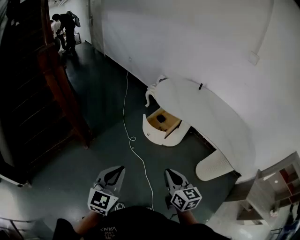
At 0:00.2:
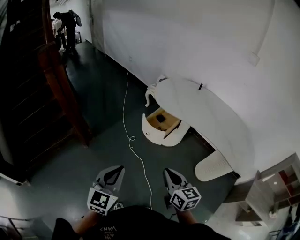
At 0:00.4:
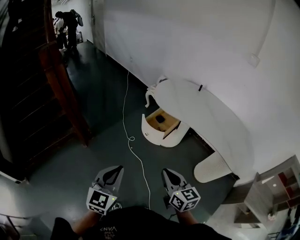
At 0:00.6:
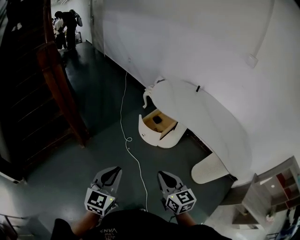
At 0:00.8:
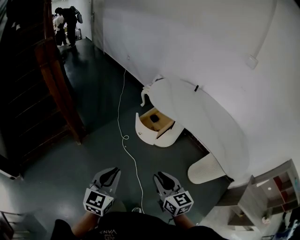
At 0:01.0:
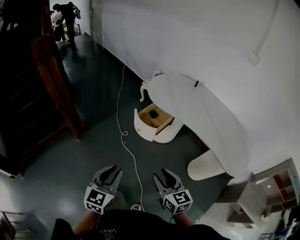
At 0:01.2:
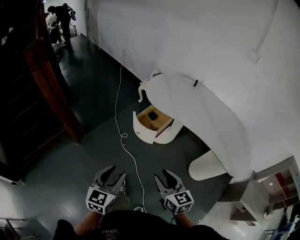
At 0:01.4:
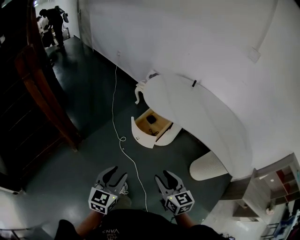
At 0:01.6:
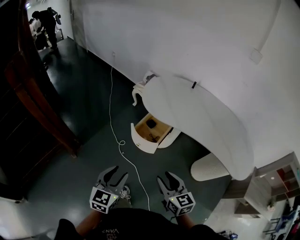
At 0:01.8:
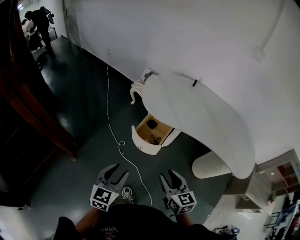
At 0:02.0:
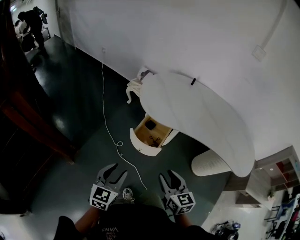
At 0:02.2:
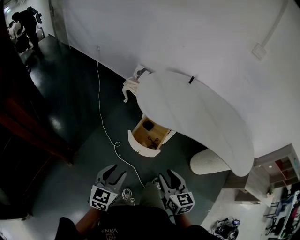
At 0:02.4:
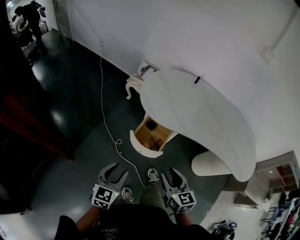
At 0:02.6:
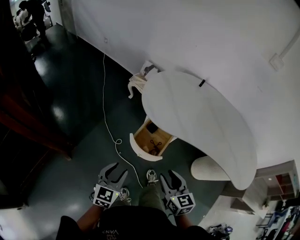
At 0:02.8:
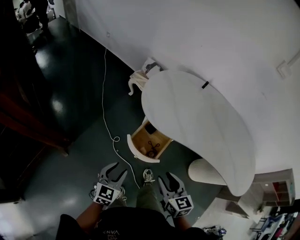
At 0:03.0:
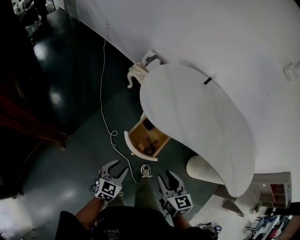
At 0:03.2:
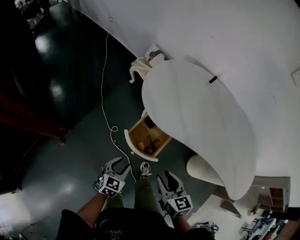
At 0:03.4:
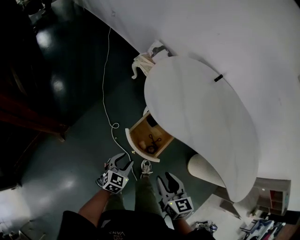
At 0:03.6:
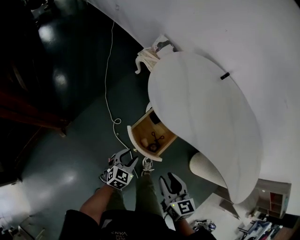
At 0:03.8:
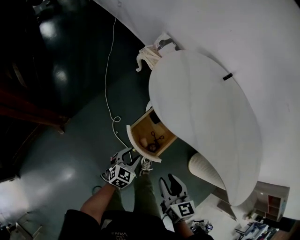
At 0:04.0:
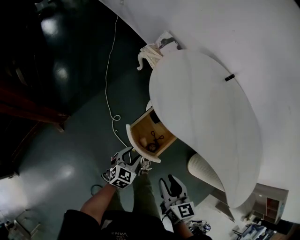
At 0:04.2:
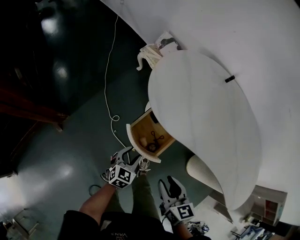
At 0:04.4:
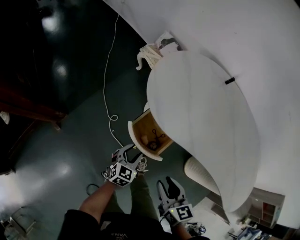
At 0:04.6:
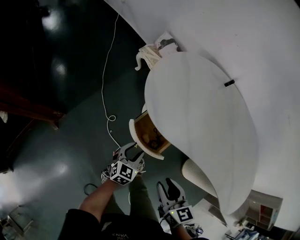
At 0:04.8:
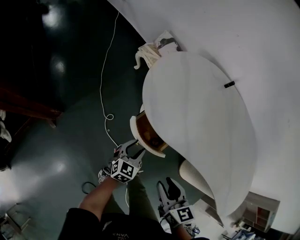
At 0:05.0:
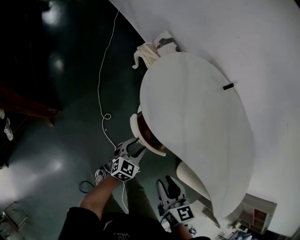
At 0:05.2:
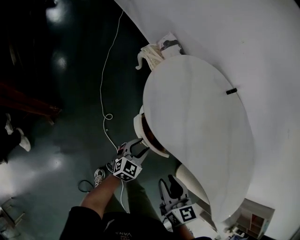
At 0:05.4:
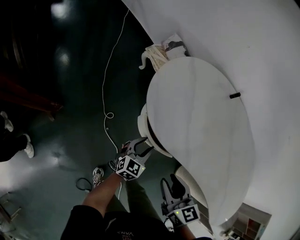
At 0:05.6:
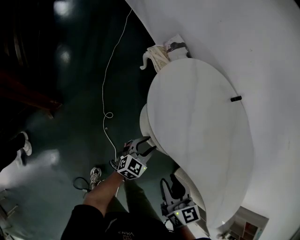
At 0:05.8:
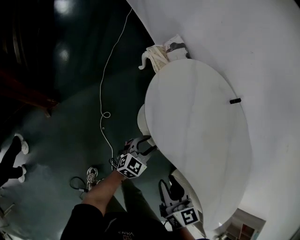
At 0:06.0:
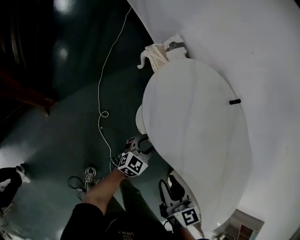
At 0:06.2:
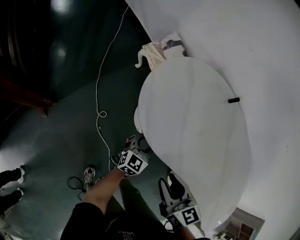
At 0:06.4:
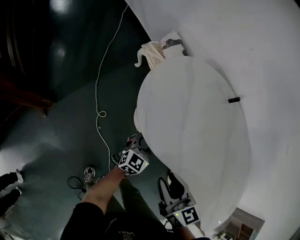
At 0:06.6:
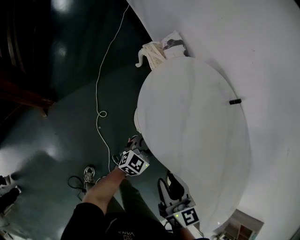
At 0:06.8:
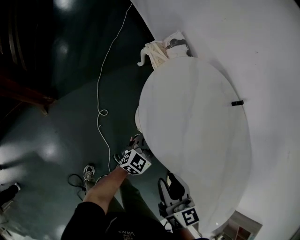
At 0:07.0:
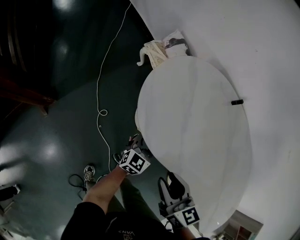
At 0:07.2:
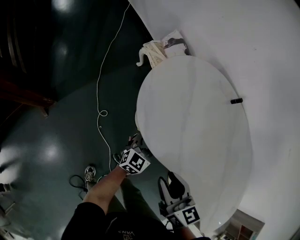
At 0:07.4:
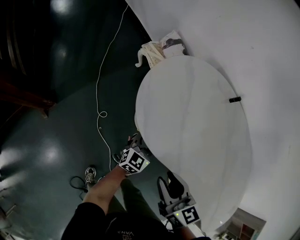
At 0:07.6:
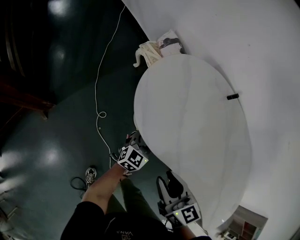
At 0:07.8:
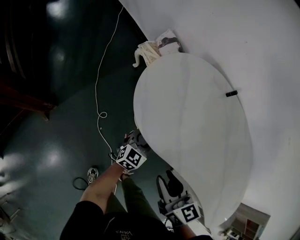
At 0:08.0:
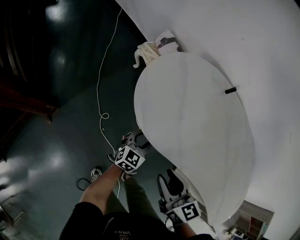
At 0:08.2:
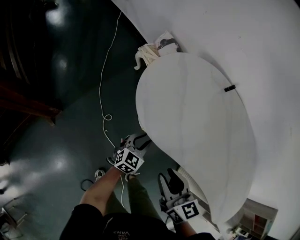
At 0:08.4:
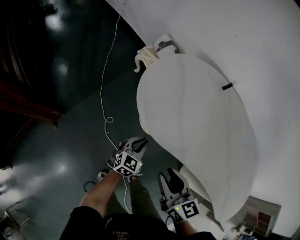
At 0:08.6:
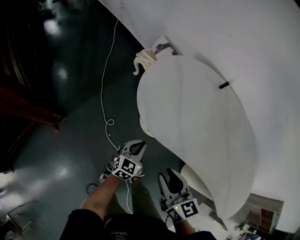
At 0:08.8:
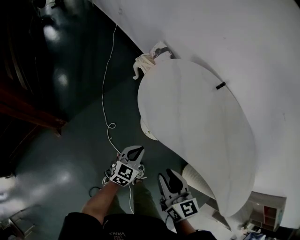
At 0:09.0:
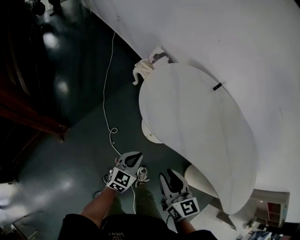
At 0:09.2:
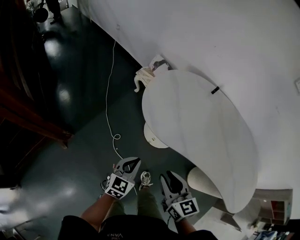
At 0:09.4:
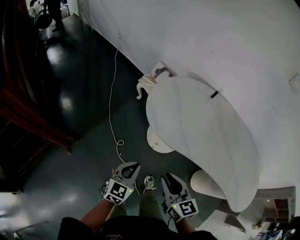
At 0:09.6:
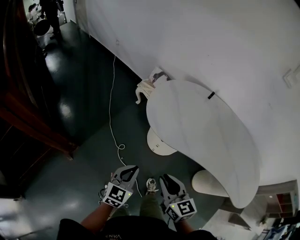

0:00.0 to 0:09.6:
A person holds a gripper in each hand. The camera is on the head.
0:00.0 to 0:01.6: The left gripper moves forward and downward, approximately 20 cm, and opens. The right gripper goes approximately 10 cm forward, and opens.
0:01.6 to 0:03.2: The right gripper shifts about 20 cm forward and downward. The left gripper shifts roughly 30 cm downward and forward.
0:03.2 to 0:04.8: The left gripper goes approximately 15 cm forward, to the right and downward; the right gripper changes place by roughly 5 cm.
0:04.8 to 0:06.4: The right gripper goes roughly 10 cm forward. The left gripper shifts some 15 cm forward and to the right.
0:06.4 to 0:08.0: The grippers make only small movements.
0:08.0 to 0:09.6: The left gripper is displaced upward, backward and to the left by about 30 cm, and closes. The right gripper shifts about 15 cm backward, to the left and upward.

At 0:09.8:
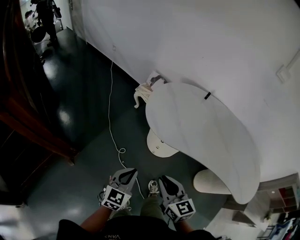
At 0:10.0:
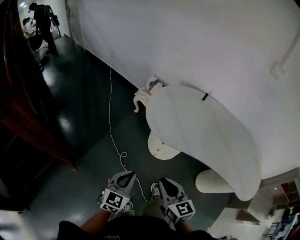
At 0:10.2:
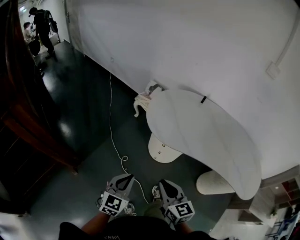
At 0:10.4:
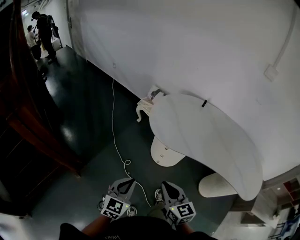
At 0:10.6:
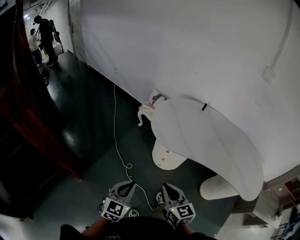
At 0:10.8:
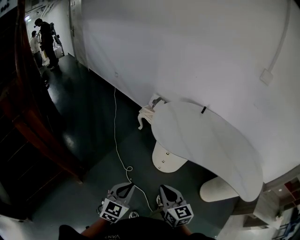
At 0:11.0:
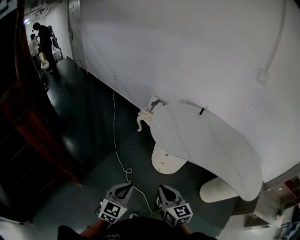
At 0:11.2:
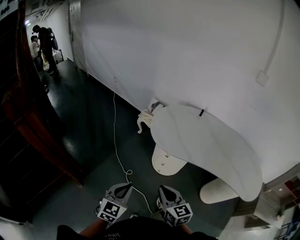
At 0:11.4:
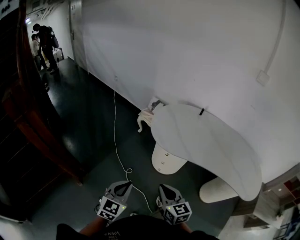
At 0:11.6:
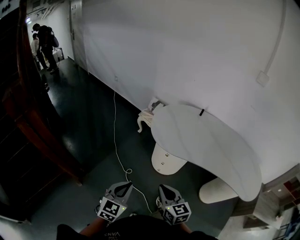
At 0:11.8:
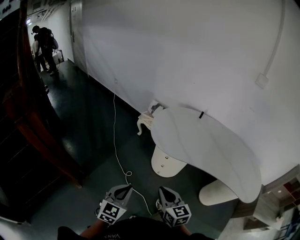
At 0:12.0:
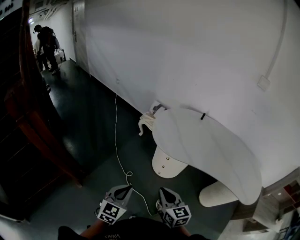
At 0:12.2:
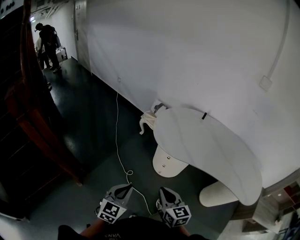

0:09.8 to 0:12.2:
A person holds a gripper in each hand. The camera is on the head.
0:09.8 to 0:11.0: The right gripper is displaced backward by about 5 cm; the left gripper moves backward, to the left and upward, roughly 10 cm.
0:11.0 to 0:12.2: The two grippers keep their place.

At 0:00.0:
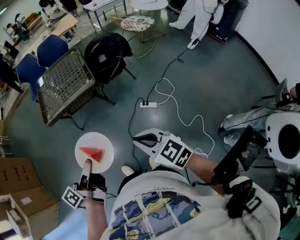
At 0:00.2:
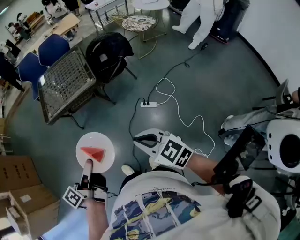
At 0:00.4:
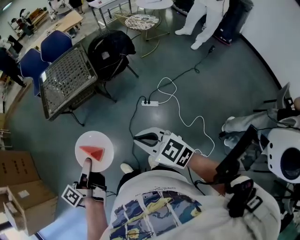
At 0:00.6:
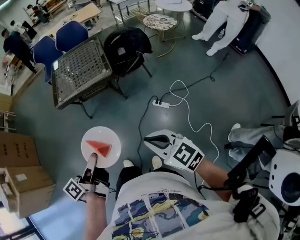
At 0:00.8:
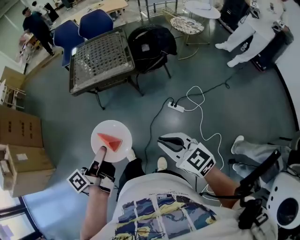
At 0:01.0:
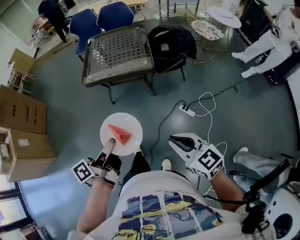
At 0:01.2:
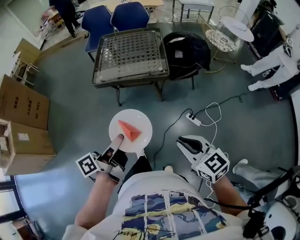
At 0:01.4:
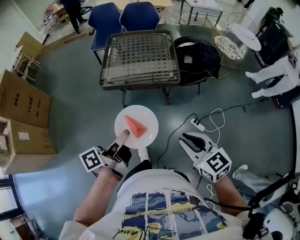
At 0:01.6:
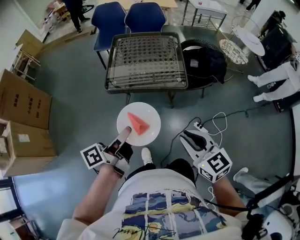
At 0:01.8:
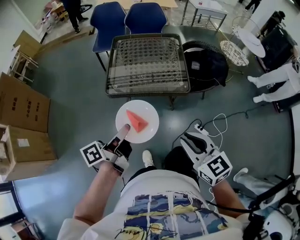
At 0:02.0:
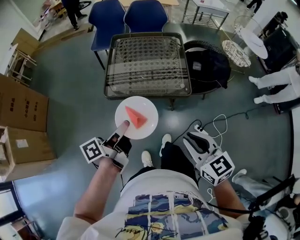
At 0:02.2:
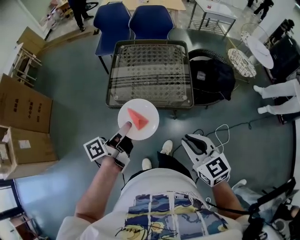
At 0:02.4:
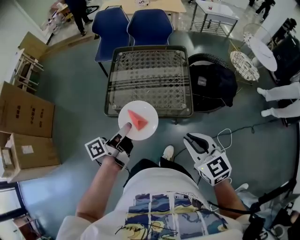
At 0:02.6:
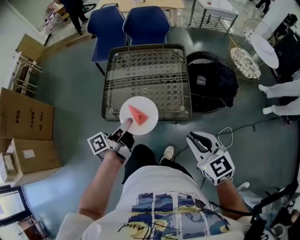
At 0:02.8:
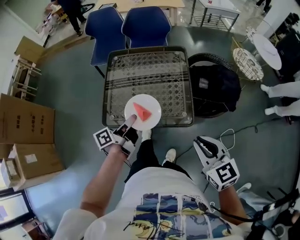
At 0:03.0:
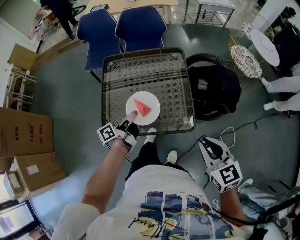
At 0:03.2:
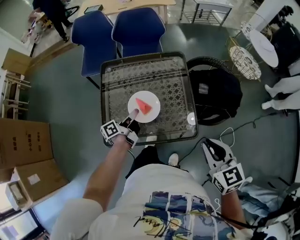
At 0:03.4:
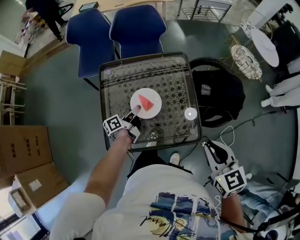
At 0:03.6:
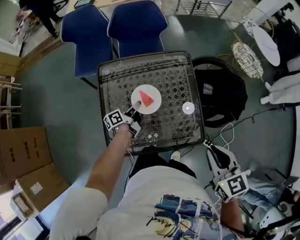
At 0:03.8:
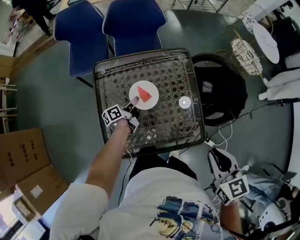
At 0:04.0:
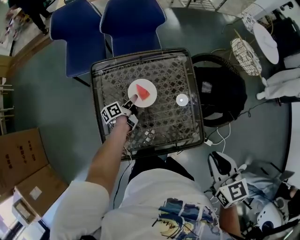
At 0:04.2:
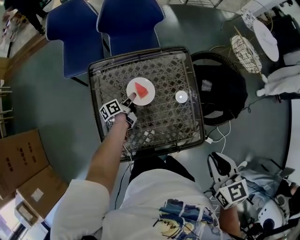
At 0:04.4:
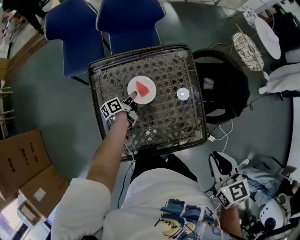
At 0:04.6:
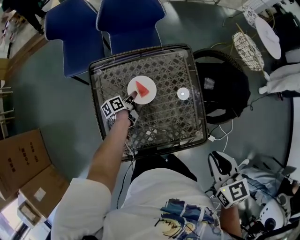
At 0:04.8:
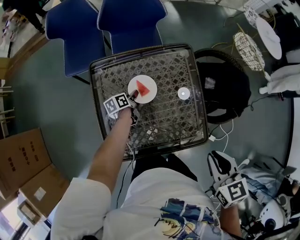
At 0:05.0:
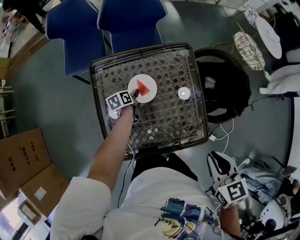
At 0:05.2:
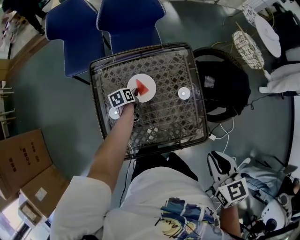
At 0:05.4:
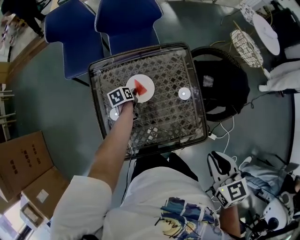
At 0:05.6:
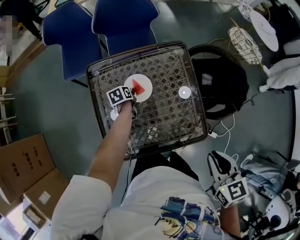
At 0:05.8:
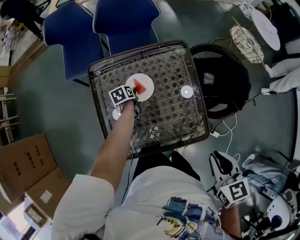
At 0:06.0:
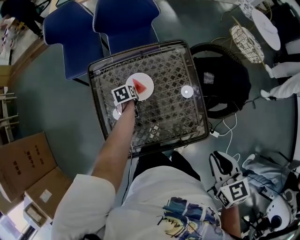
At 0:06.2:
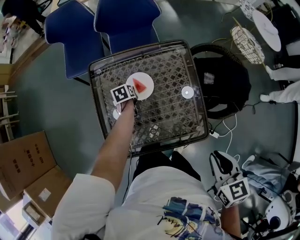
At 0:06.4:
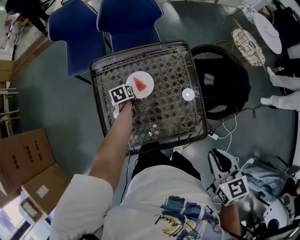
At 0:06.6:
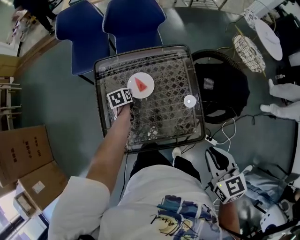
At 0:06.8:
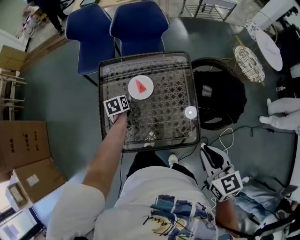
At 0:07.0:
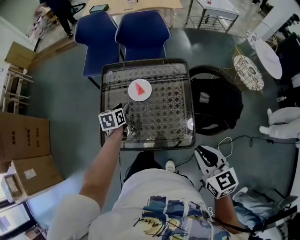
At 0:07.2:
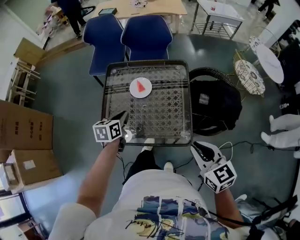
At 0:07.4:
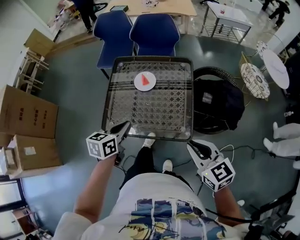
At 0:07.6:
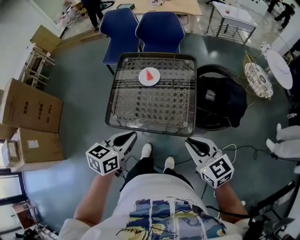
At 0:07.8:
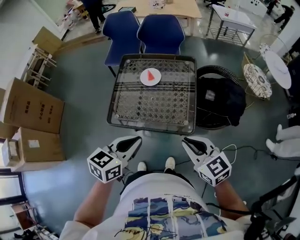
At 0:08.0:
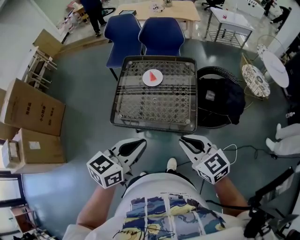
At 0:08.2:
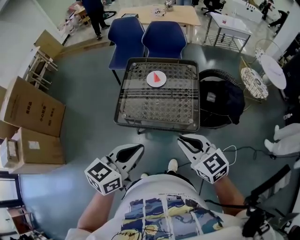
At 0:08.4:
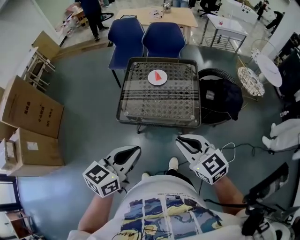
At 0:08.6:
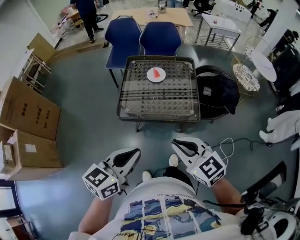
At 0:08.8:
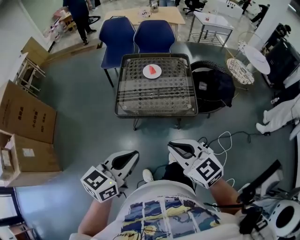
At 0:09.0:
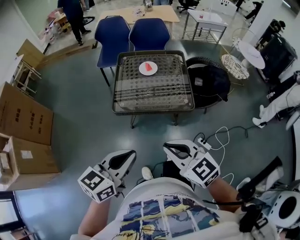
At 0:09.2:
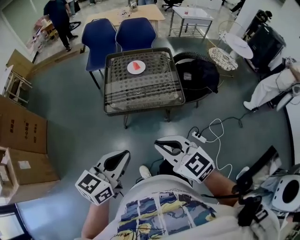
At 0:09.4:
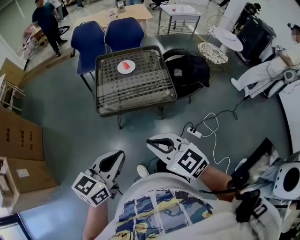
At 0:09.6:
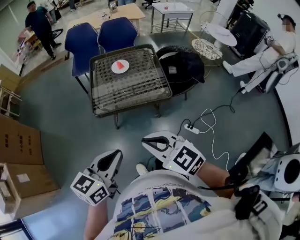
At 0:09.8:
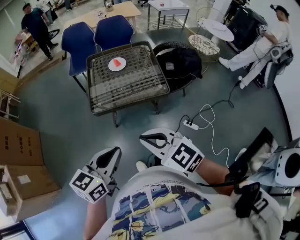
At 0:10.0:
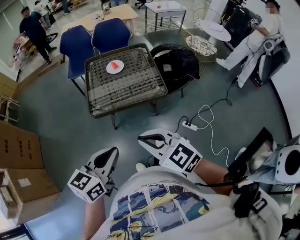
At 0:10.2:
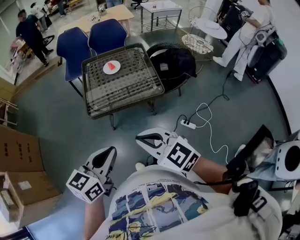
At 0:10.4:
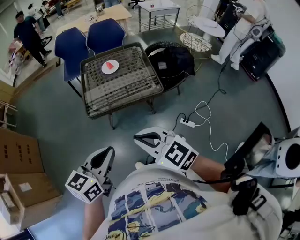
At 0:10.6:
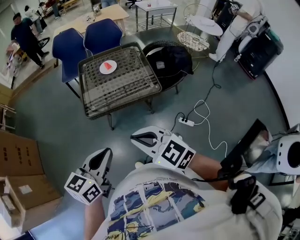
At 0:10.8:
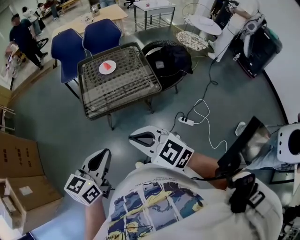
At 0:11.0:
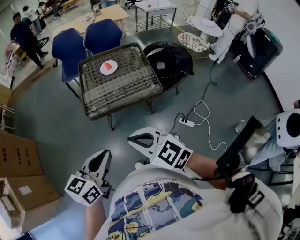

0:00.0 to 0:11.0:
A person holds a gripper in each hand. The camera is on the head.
0:00.0 to 0:01.6: Both grippers travel together forward and to the left, about 30 cm.
0:01.6 to 0:03.2: Both grippers move forward, some 40 cm.
0:03.2 to 0:04.8: The left gripper is displaced downward, forward and to the left by roughly 25 cm, and angles its fingers downward, by about 30 degrees. The right gripper shifts approximately 10 cm to the left.
0:04.8 to 0:06.2: The left gripper turns by roughly 30 degrees, and opens its fingers.
0:06.2 to 0:07.8: The left gripper shifts about 60 cm backward and upward, tilts its fingers some 40 degrees upward, and closes. The right gripper is displaced backward by roughly 10 cm, and rotates approximately 50 degrees.
0:07.8 to 0:09.4: The two grippers go about 30 cm backward and to the left.
0:09.4 to 0:11.0: There are only small adjustments of the grippers.
